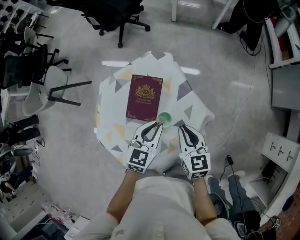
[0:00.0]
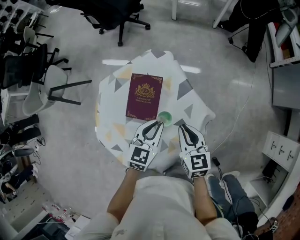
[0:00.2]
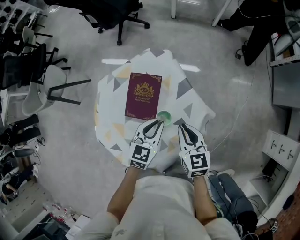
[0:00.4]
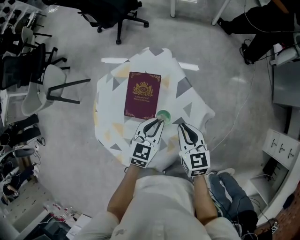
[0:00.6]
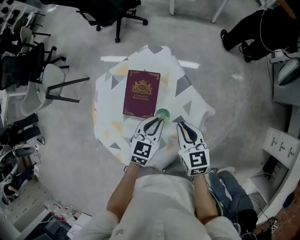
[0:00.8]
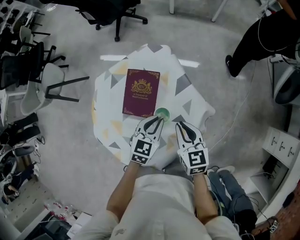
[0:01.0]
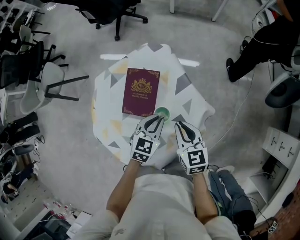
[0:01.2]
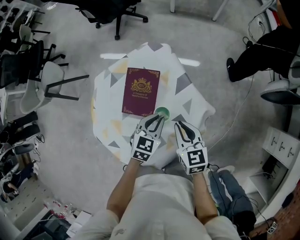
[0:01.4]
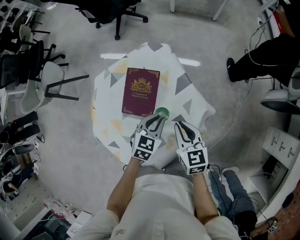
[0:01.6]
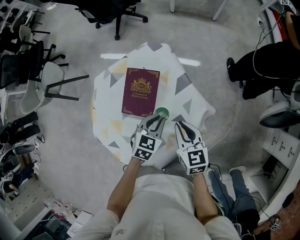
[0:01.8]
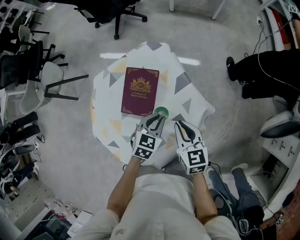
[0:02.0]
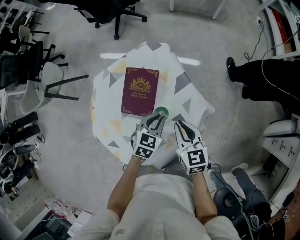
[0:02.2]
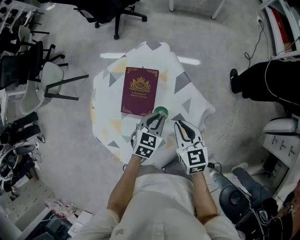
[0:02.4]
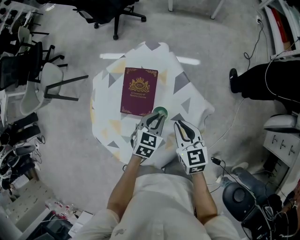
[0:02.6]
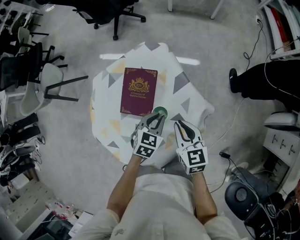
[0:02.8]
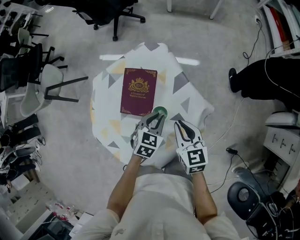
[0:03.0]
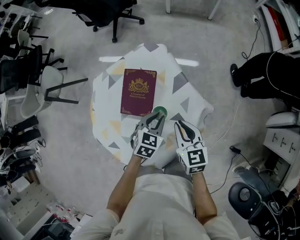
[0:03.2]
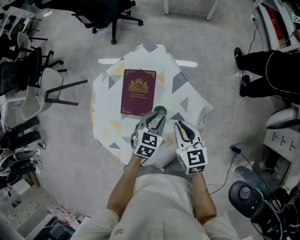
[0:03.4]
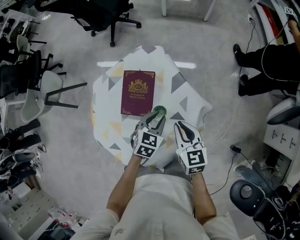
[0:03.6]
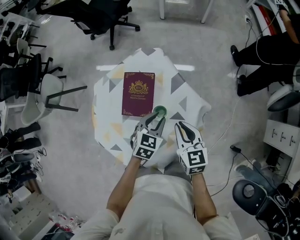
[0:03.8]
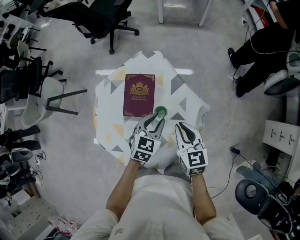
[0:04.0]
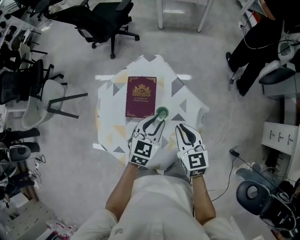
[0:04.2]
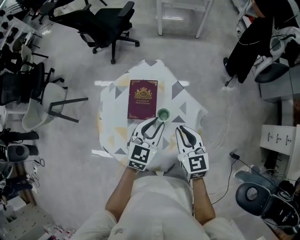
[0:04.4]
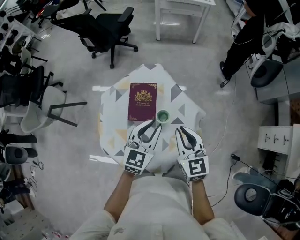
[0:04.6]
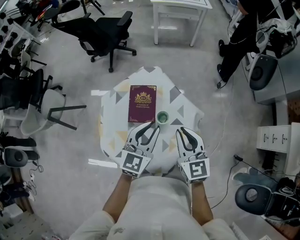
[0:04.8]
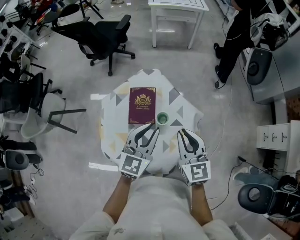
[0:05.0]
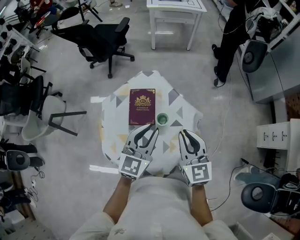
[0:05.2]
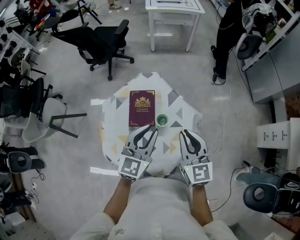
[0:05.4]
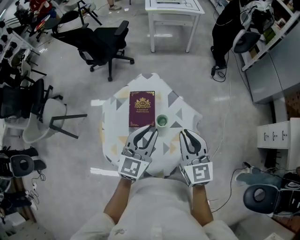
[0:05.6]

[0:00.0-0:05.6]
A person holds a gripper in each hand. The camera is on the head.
0.0 to 1.4 s: The left gripper shifts about 10 cm downward.
1.4 to 2.8 s: The grippers move only a little.
2.8 to 4.2 s: The left gripper heads upward, covering about 10 cm. The right gripper is displaced upward by roughly 5 cm.
4.2 to 5.6 s: The grippers both shift upward by roughly 15 cm. The left gripper turns by some 20 degrees.

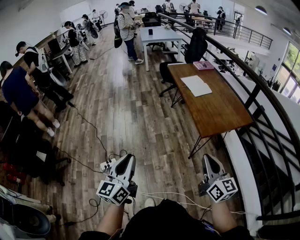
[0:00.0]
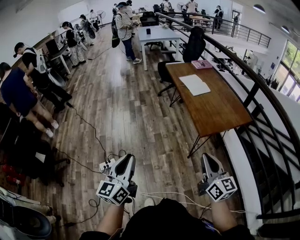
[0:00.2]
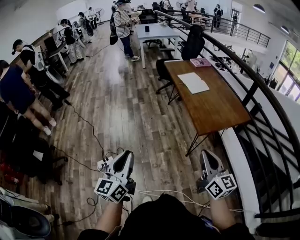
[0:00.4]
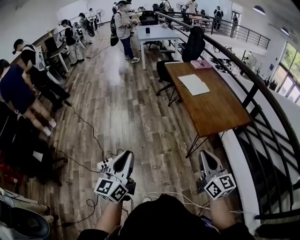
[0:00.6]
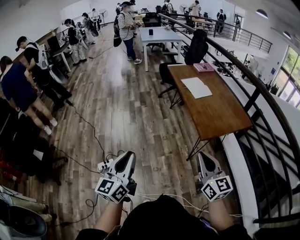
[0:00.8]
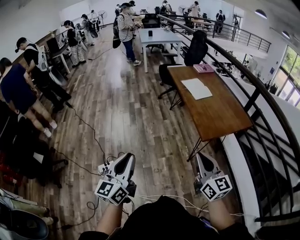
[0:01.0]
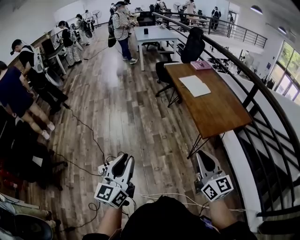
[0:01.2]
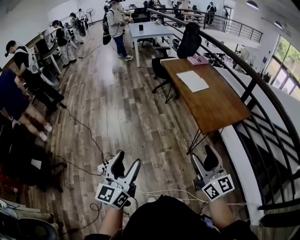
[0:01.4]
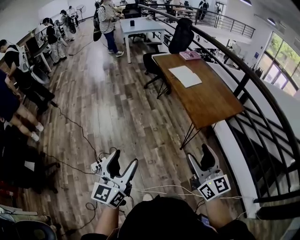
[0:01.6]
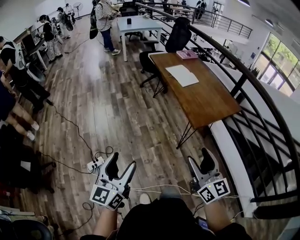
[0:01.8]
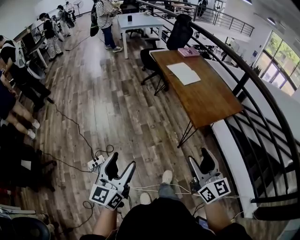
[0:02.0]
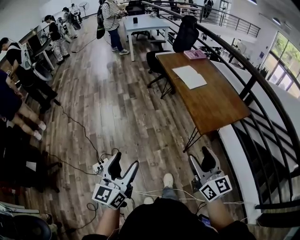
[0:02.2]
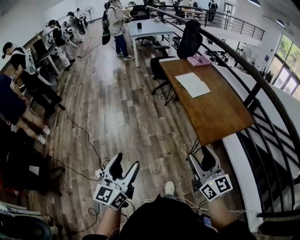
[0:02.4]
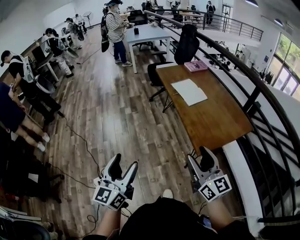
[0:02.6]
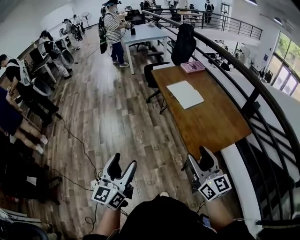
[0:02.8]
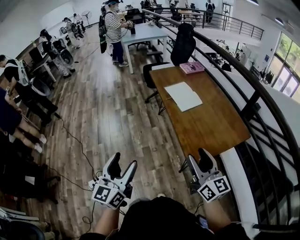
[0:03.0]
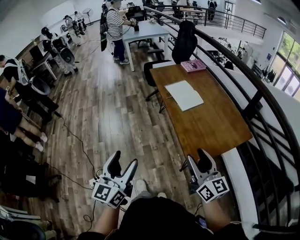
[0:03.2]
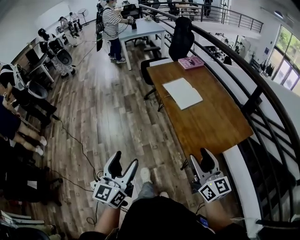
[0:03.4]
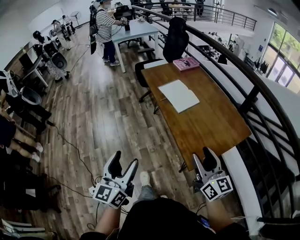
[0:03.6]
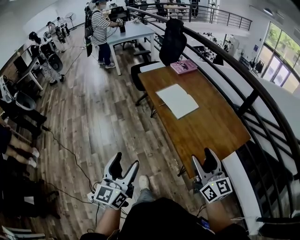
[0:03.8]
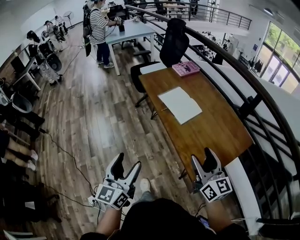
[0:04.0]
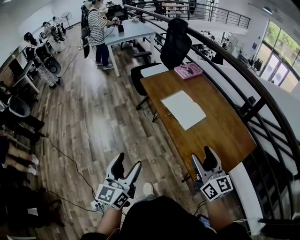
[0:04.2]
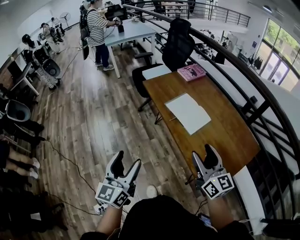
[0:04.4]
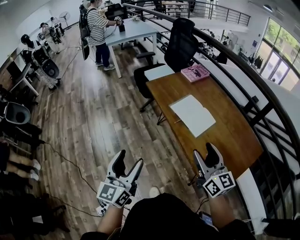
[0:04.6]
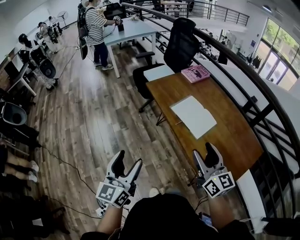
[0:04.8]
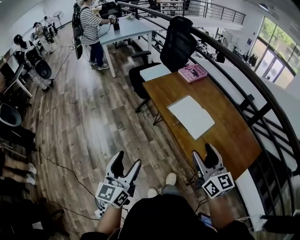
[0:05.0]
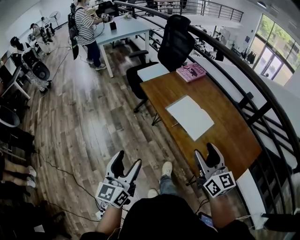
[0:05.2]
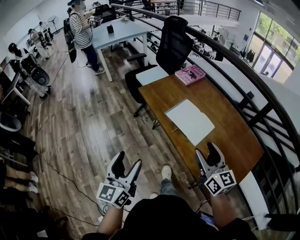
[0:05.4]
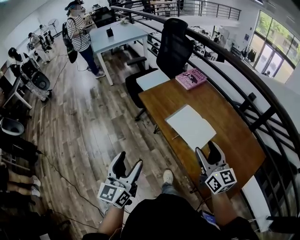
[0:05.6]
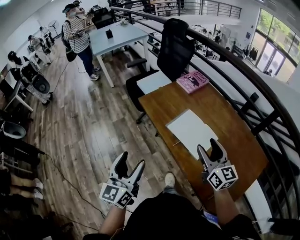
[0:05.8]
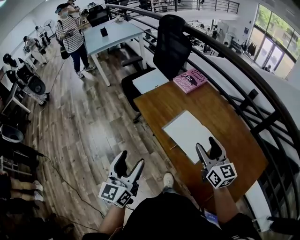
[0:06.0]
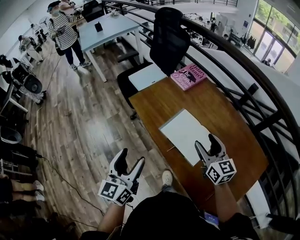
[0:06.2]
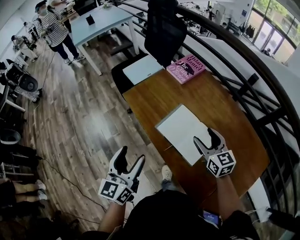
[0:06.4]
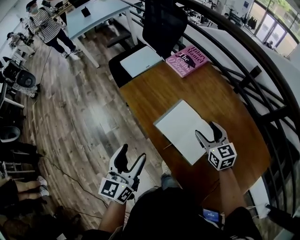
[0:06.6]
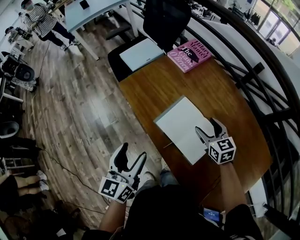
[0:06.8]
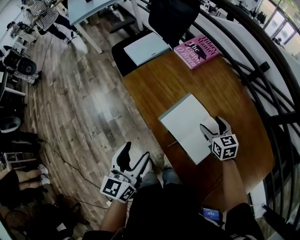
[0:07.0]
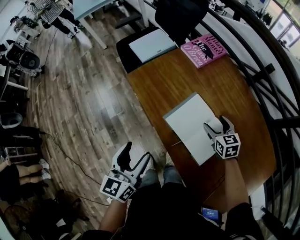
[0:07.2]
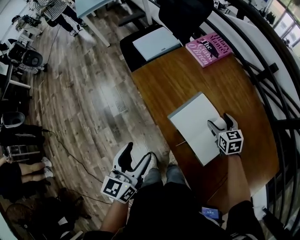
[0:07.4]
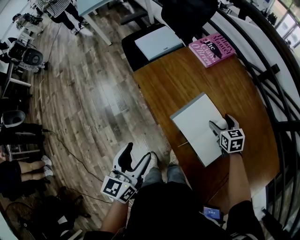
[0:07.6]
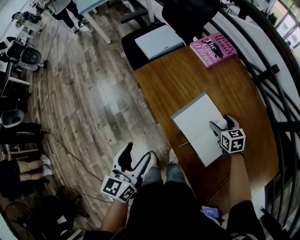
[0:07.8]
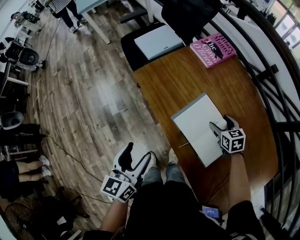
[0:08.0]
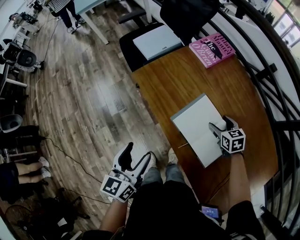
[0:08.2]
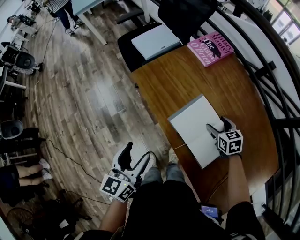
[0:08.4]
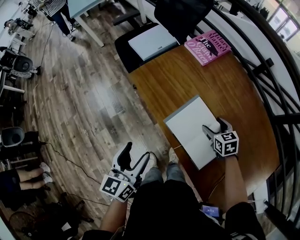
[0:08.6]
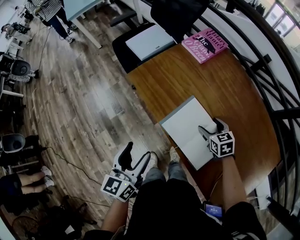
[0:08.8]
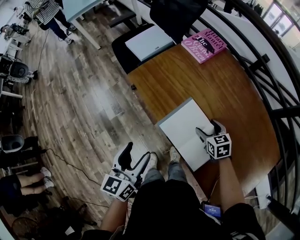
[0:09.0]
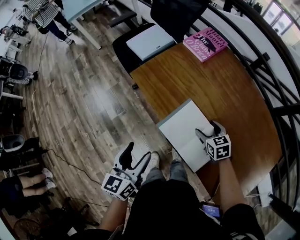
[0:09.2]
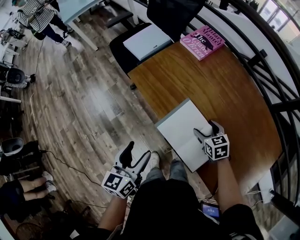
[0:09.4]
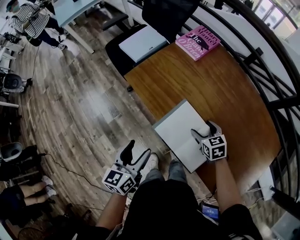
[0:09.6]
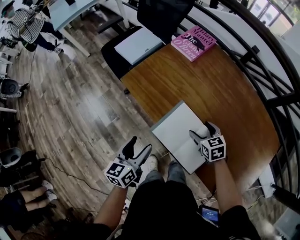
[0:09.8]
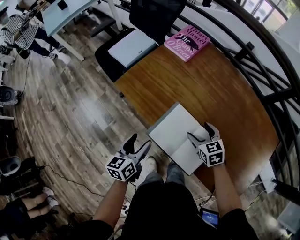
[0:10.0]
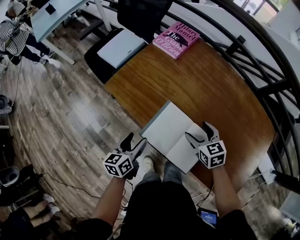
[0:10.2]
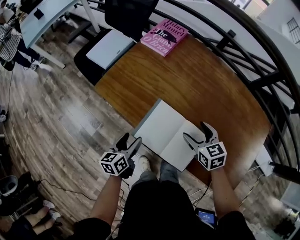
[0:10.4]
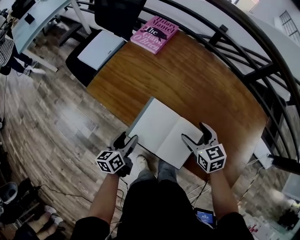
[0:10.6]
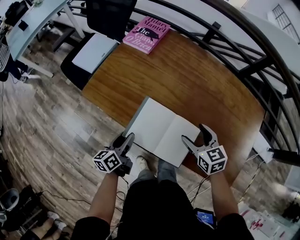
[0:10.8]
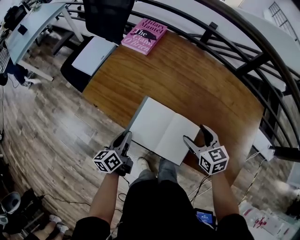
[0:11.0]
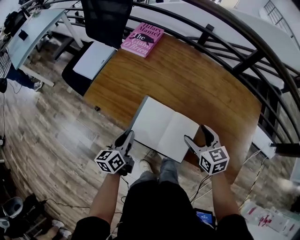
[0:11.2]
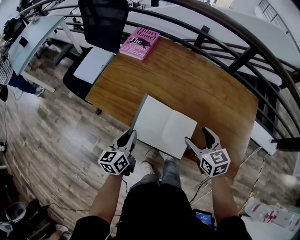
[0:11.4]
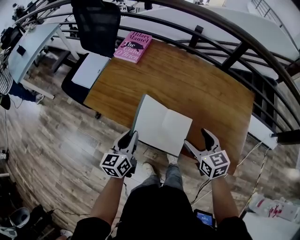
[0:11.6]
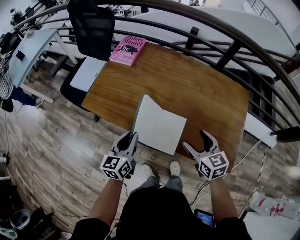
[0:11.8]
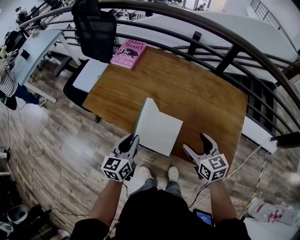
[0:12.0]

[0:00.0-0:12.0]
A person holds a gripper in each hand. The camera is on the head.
0.0 to 1.6 s: The left gripper opens its fingers. Meanwhile the right gripper moves to the left, approximately 10 cm, and opens its fingers.
1.6 to 3.0 s: The two grippers go about 25 cm forward and to the right.
3.0 to 4.4 s: Both grippers travel together forward, approximately 25 cm.
4.4 to 6.0 s: Both grippers move forward, roughly 25 cm.
6.0 to 7.6 s: The left gripper goes roughly 15 cm downward and forward; the right gripper moves downward and forward, roughly 30 cm, and tilts its fingers roughly 40 degrees downward.
7.6 to 9.0 s: The right gripper travels to the left by some 5 cm.
9.0 to 10.4 s: The left gripper travels downward and forward by some 15 cm, and changes its angle by approximately 30 degrees, while the right gripper moves backward and upward, approximately 5 cm.
10.4 to 12.0 s: The left gripper moves upward and to the right, roughly 15 cm, swivels about 30 degrees, and closes. The right gripper heads backward, upward and to the right, covering approximately 20 cm.

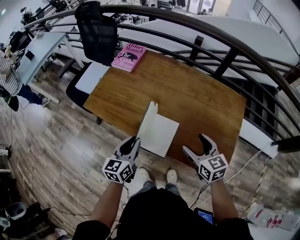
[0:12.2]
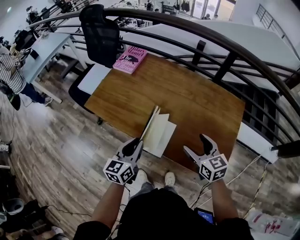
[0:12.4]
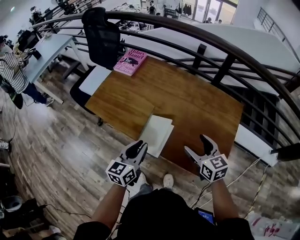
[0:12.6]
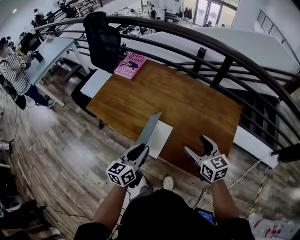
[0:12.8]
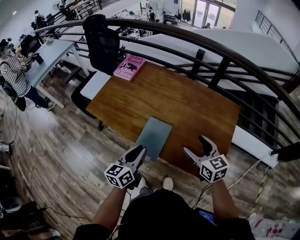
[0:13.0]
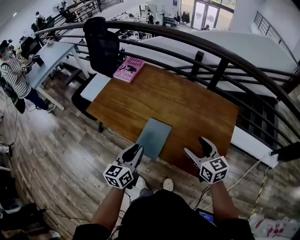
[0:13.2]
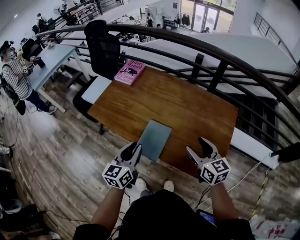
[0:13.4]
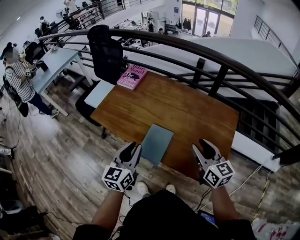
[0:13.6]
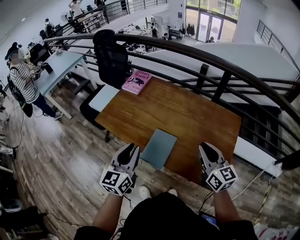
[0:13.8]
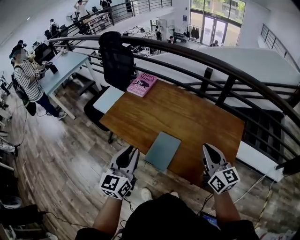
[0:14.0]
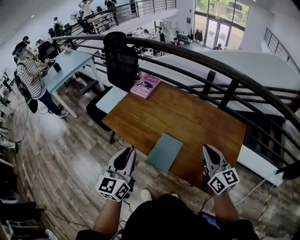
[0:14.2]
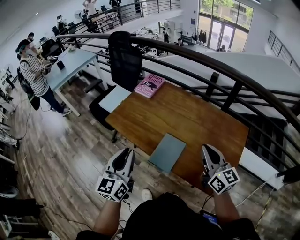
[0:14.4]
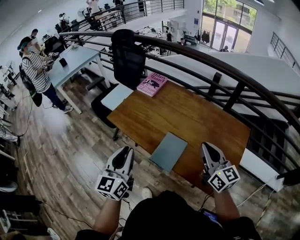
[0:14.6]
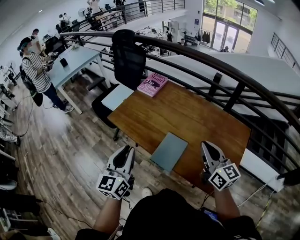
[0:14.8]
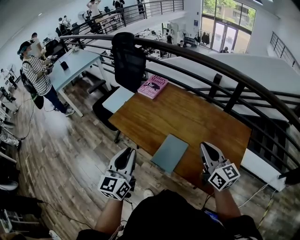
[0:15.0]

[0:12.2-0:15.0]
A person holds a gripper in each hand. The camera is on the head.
12.2 to 13.6 s: The two grippers go roughly 10 cm upward. The right gripper closes its fingers.
13.6 to 15.0 s: The left gripper moves to the left and upward, approximately 10 cm; the right gripper is displaced to the left by about 5 cm, and closes its fingers.

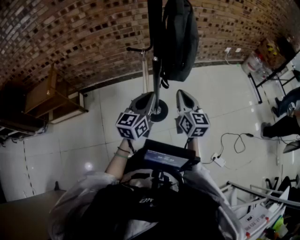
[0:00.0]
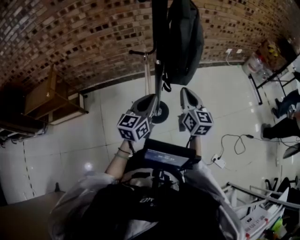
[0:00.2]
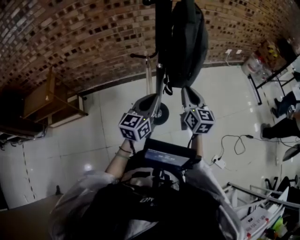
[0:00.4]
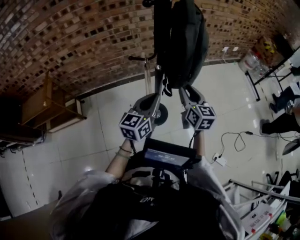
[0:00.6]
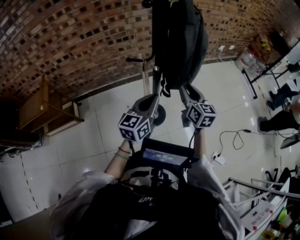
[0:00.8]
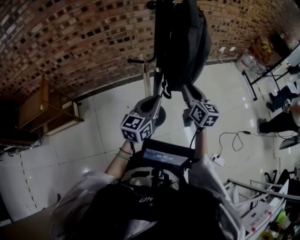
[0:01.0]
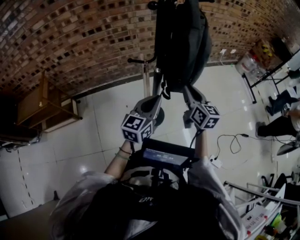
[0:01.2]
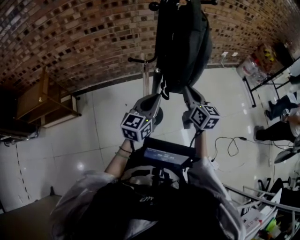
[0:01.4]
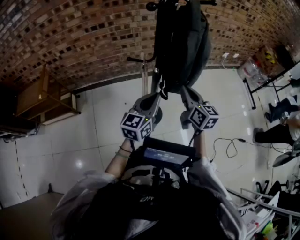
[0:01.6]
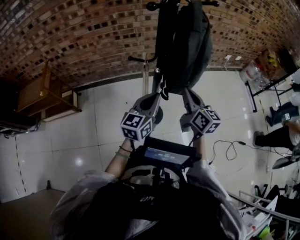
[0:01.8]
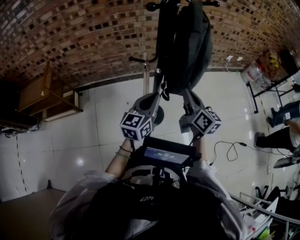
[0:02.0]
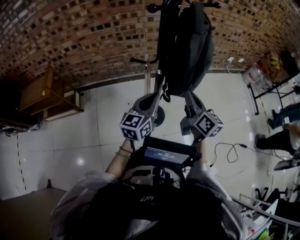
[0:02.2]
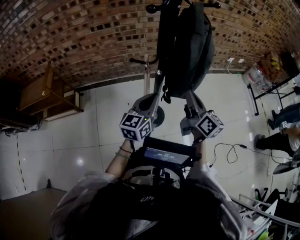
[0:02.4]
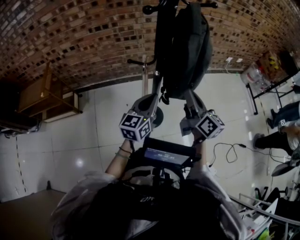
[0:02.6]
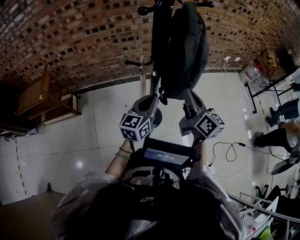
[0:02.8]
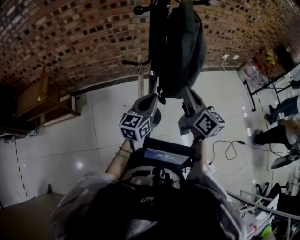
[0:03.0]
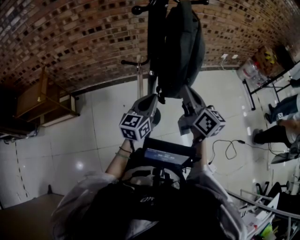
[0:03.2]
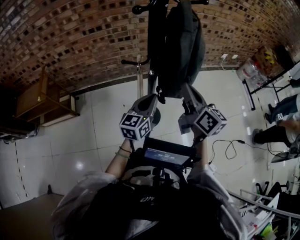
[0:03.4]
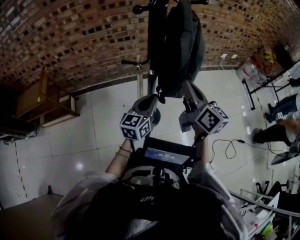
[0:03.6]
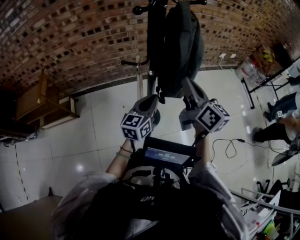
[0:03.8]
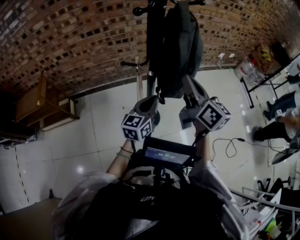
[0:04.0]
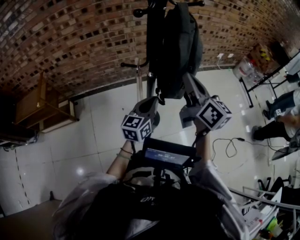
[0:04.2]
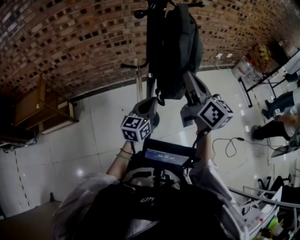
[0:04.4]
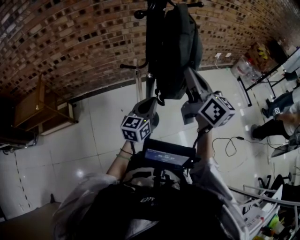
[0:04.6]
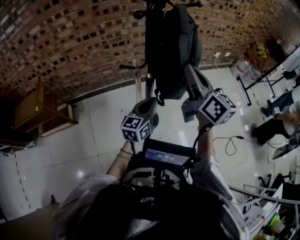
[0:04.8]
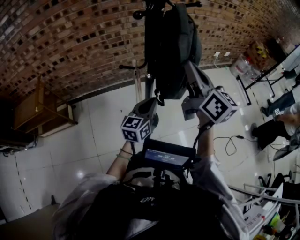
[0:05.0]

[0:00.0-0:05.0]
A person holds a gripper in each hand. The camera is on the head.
0.0 to 1.6 s: The grippers both shift forward by about 10 cm. The right gripper opens and closes again.
1.6 to 3.4 s: The right gripper is displaced upward by approximately 10 cm.
3.4 to 5.0 s: The right gripper is displaced upward by approximately 10 cm.
